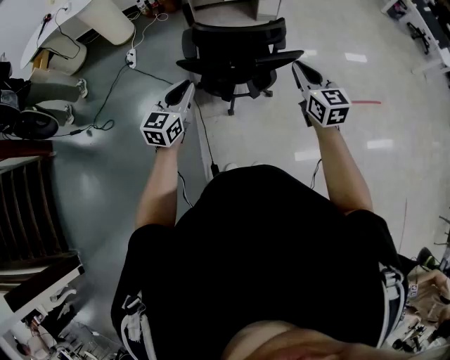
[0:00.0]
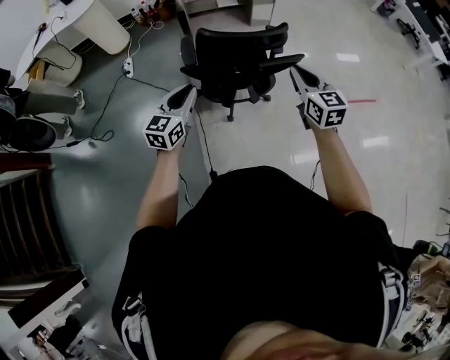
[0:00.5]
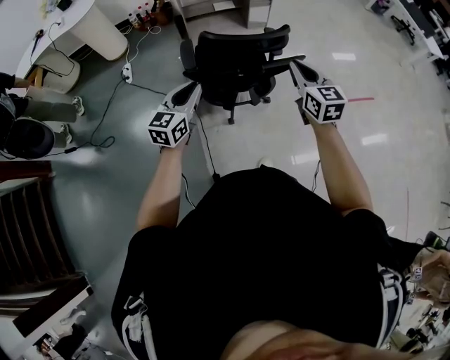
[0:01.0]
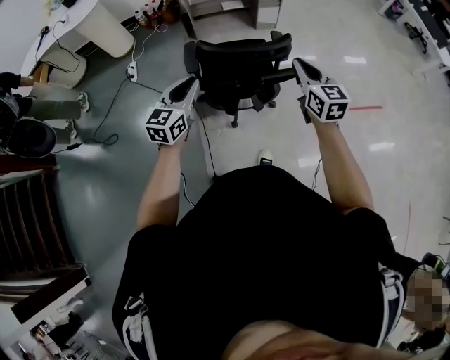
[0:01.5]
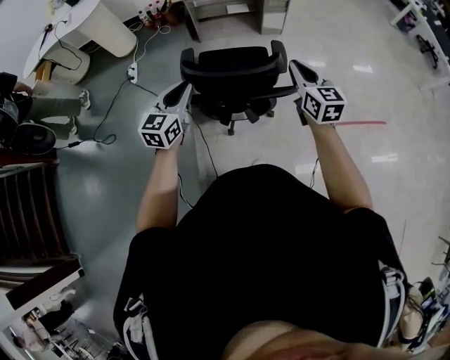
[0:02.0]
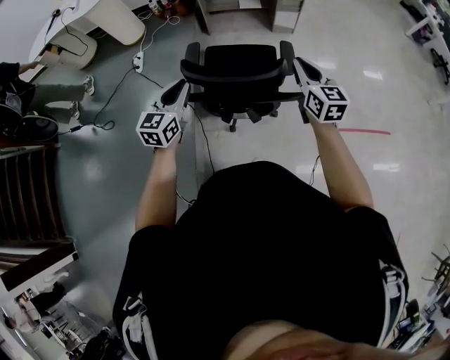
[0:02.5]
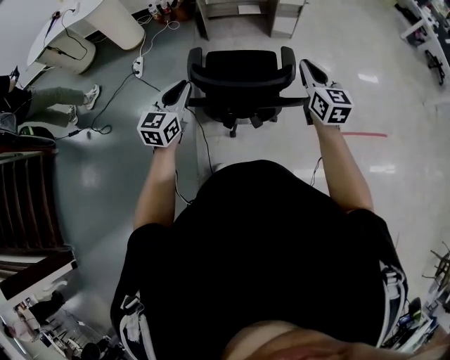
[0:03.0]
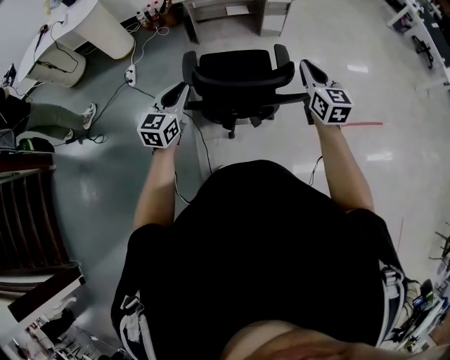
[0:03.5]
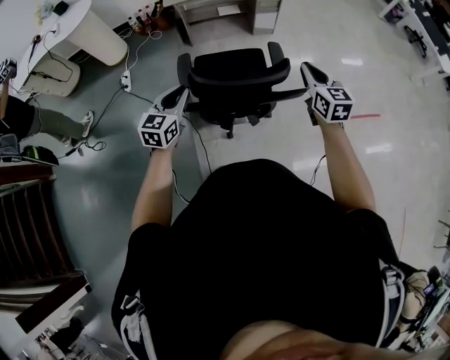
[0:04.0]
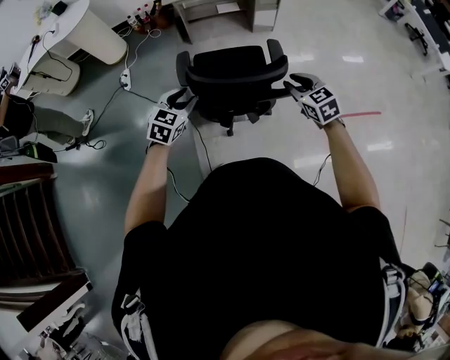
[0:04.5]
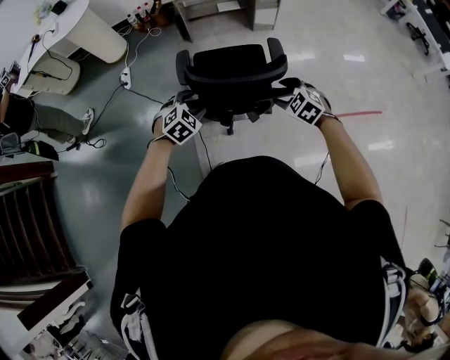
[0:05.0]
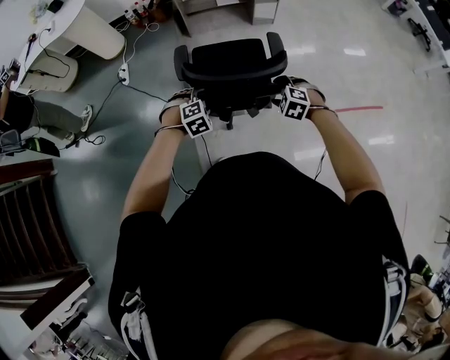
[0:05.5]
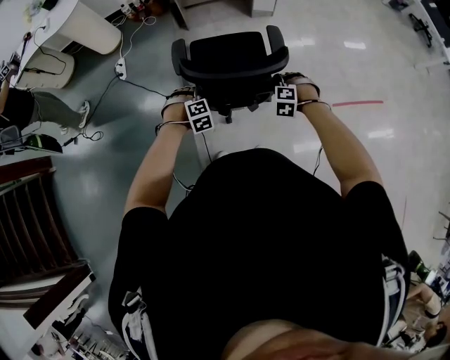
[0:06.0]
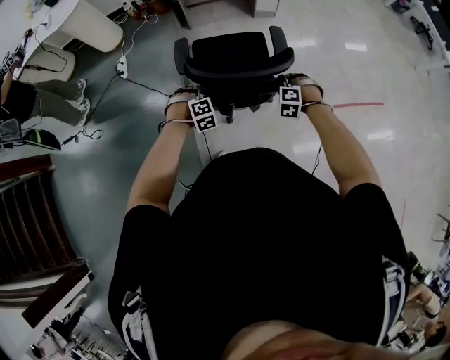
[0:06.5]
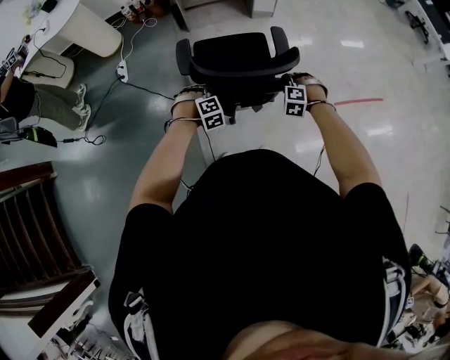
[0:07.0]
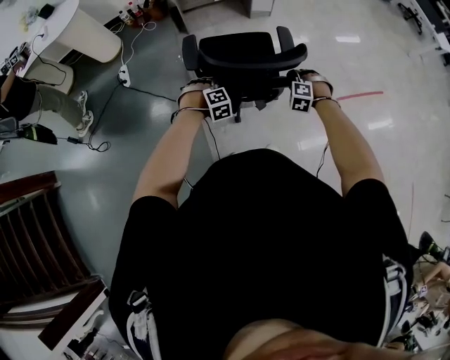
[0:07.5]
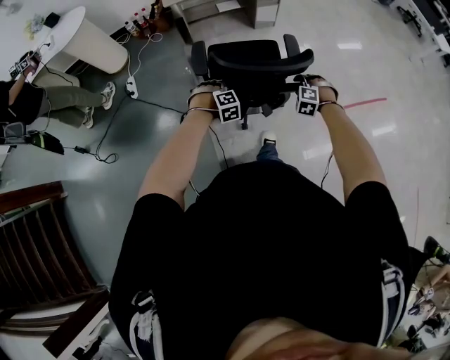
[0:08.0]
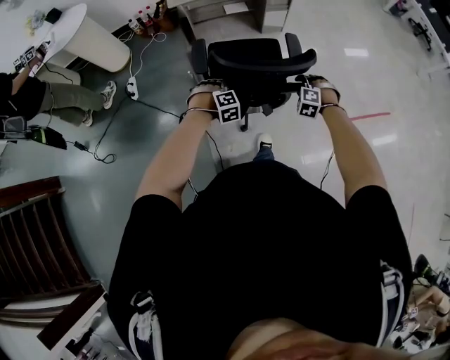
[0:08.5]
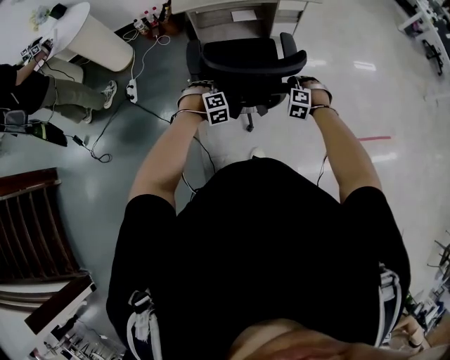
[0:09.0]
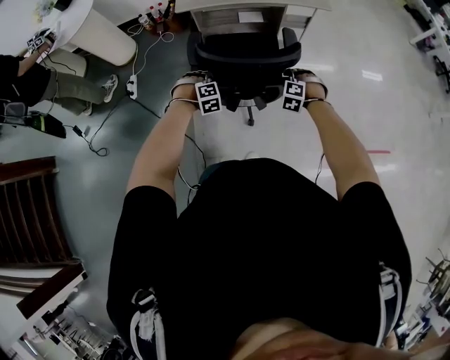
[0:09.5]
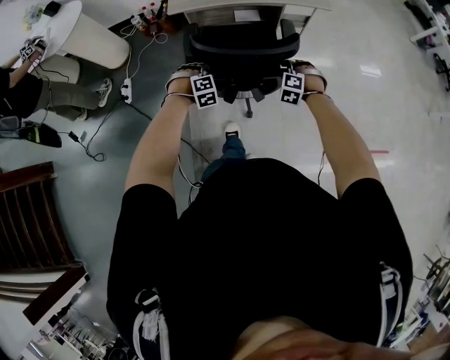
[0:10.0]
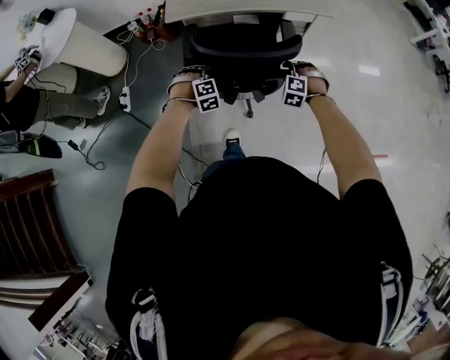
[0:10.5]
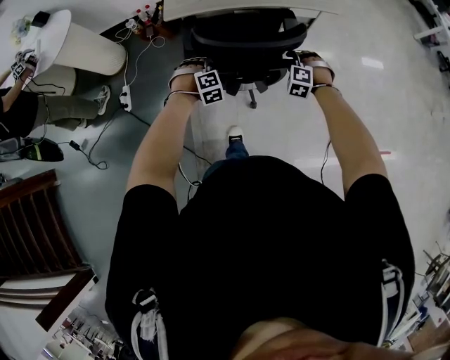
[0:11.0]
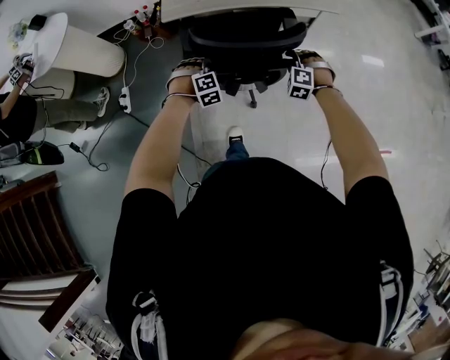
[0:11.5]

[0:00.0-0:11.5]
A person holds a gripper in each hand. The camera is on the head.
0:00.0 to 0:02.0: Both grippers move forward, roughly 15 cm.
0:02.0 to 0:04.0: The left gripper goes some 5 cm to the left.
0:04.0 to 0:06.0: The two grippers go some 25 cm downward. The left gripper tilts its fingers about 50 degrees downward, and opens; the right gripper rotates around the line of its fingers by approximately 70 degrees, counterclockwise from behind, and opens up.
0:06.0 to 0:07.5: The right gripper closes its fingers. Meanwhile the left gripper shifts by roughly 5 cm, and closes its fingers.
0:07.5 to 0:09.5: The two grippers go approximately 35 cm forward.
0:09.5 to 0:11.5: Both grippers move forward, approximately 20 cm.

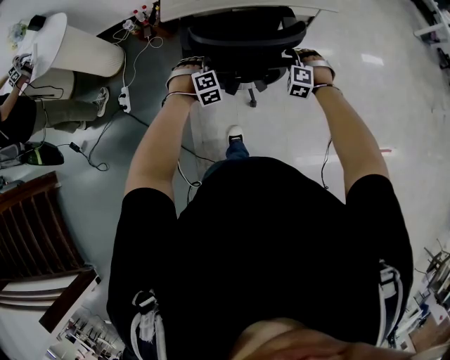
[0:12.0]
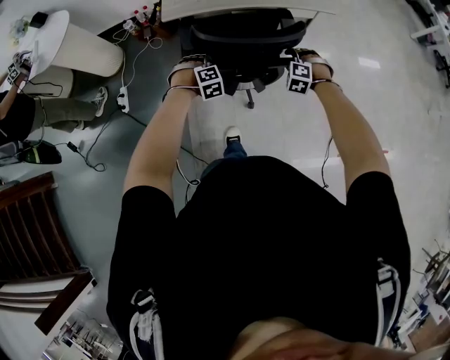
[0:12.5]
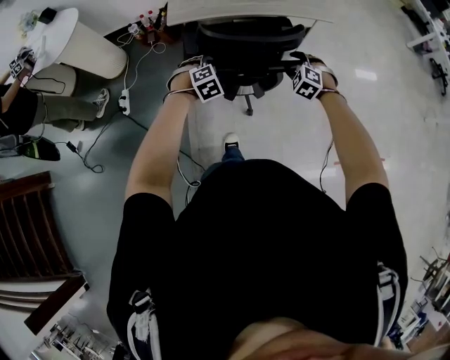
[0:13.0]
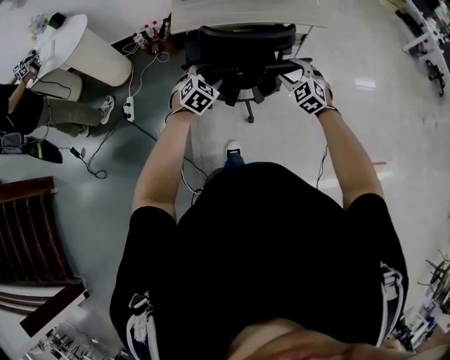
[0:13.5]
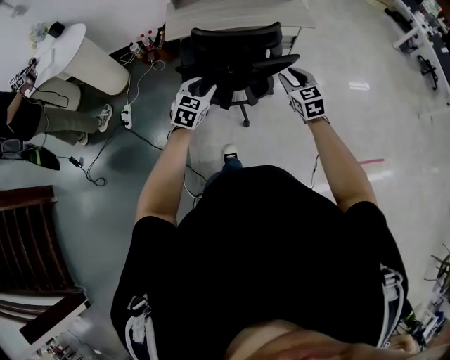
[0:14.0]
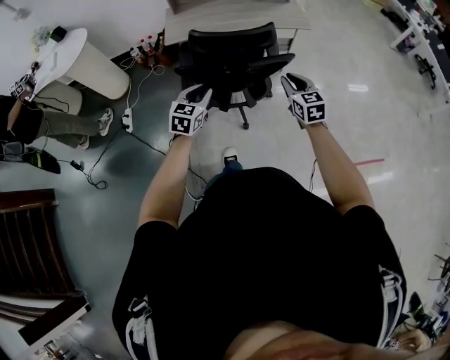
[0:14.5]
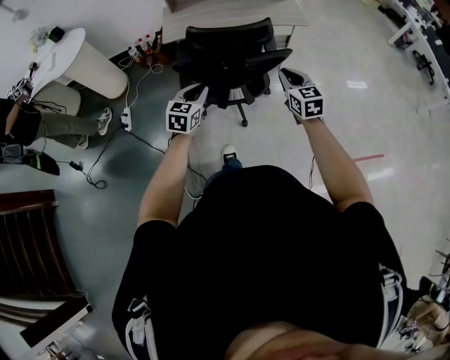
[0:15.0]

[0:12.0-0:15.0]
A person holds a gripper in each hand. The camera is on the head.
0:12.0 to 0:13.5: The two grippers go about 15 cm upward and backward. The left gripper changes its angle by about 40 degrees, and opens. The right gripper rotates roughly 40 degrees, and opens.
0:13.5 to 0:15.0: The right gripper moves backward, upward and to the right, roughly 10 cm, twists roughly 40 degrees clockwise, seen from behind, and closes up. The left gripper is displaced backward by some 10 cm, rotates approximately 30 degrees, and closes.

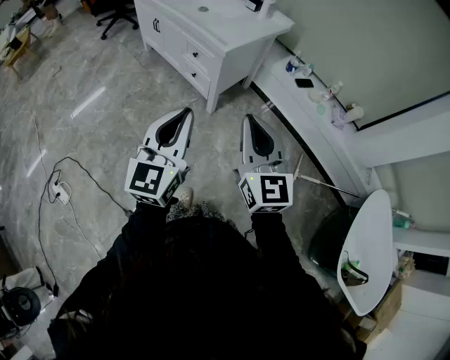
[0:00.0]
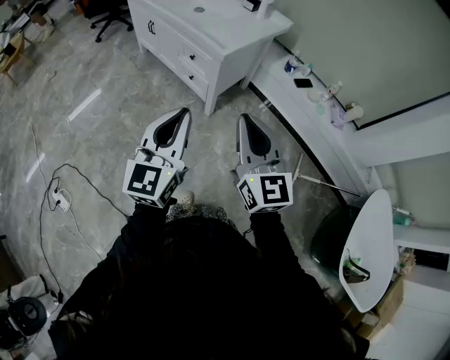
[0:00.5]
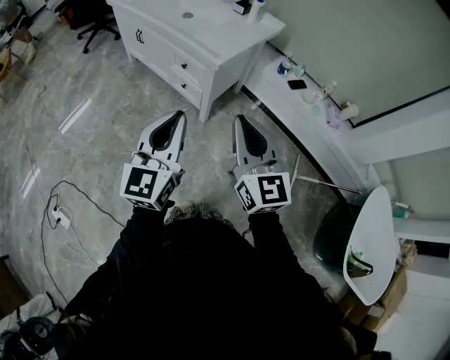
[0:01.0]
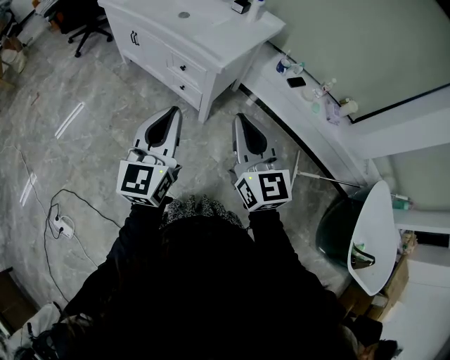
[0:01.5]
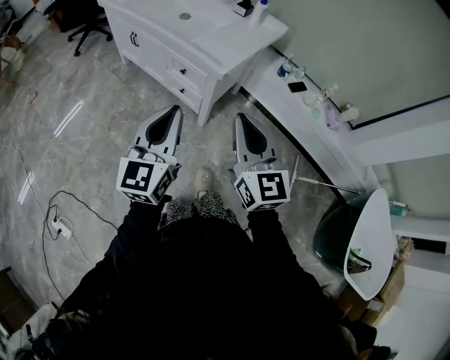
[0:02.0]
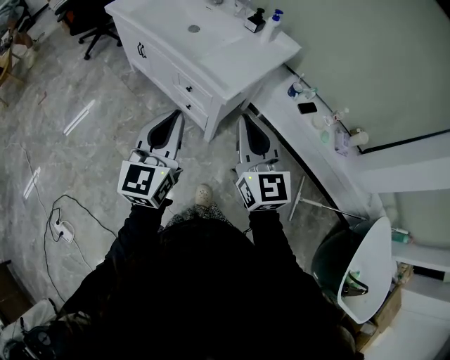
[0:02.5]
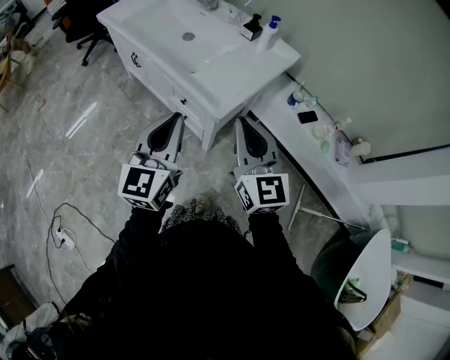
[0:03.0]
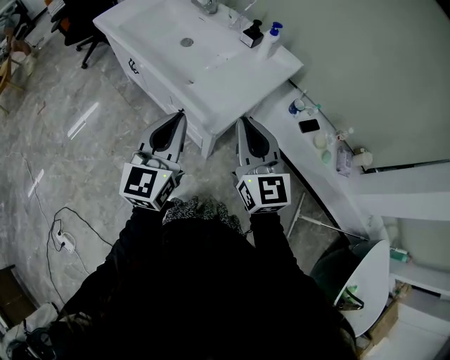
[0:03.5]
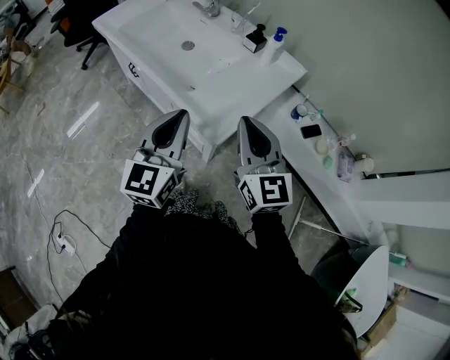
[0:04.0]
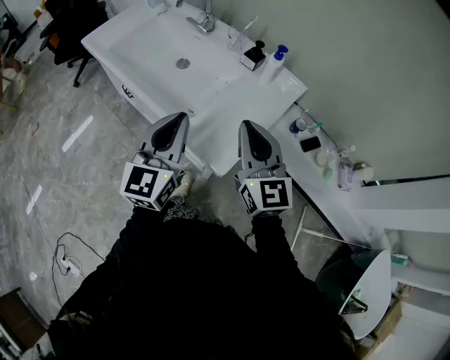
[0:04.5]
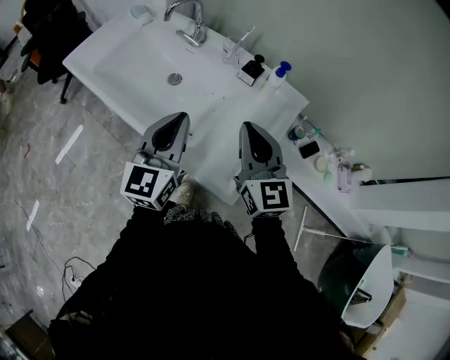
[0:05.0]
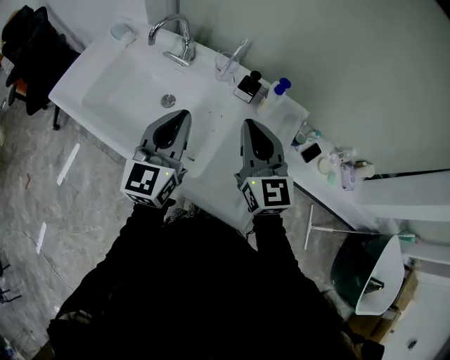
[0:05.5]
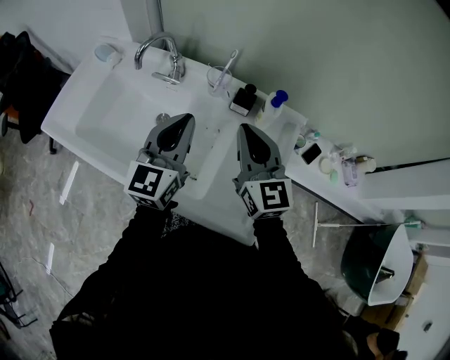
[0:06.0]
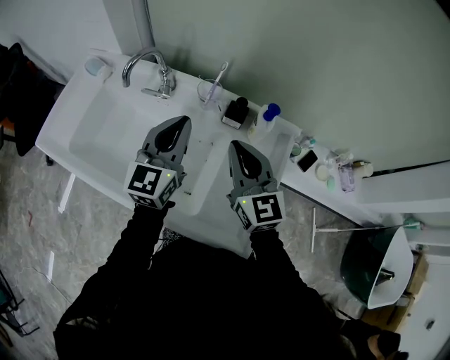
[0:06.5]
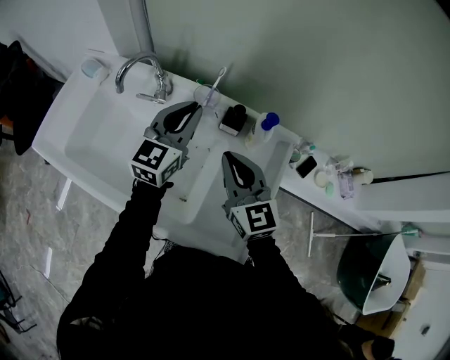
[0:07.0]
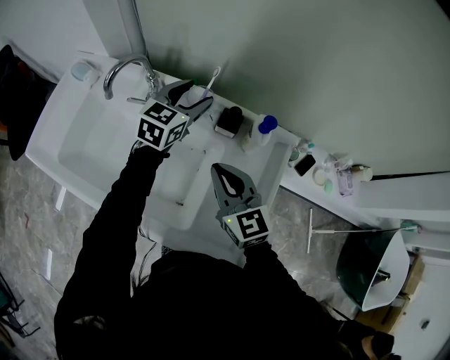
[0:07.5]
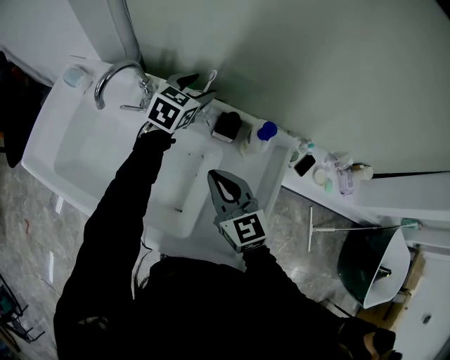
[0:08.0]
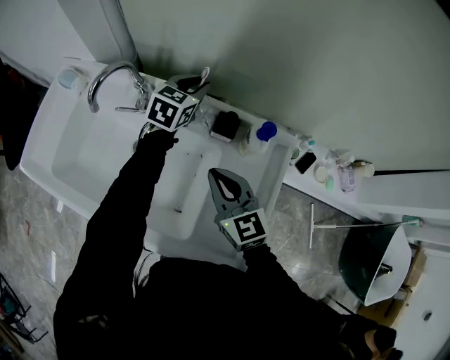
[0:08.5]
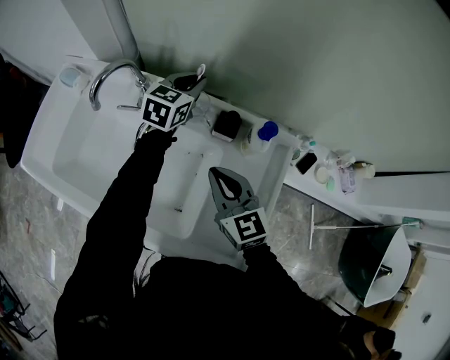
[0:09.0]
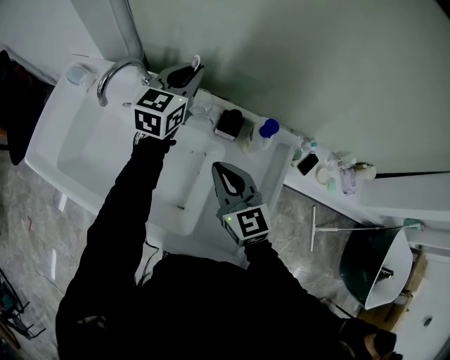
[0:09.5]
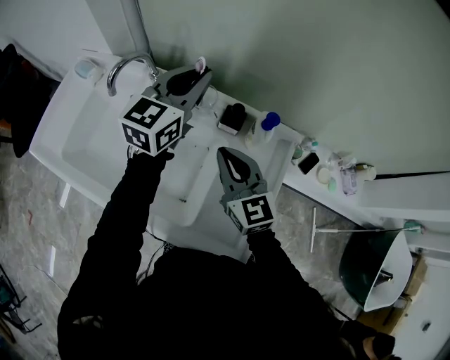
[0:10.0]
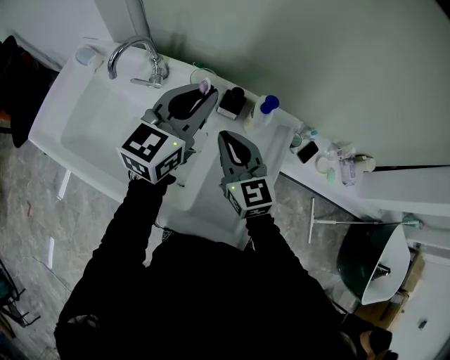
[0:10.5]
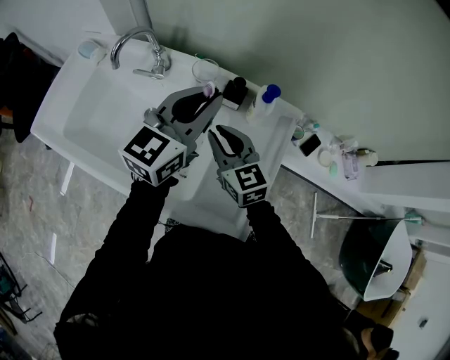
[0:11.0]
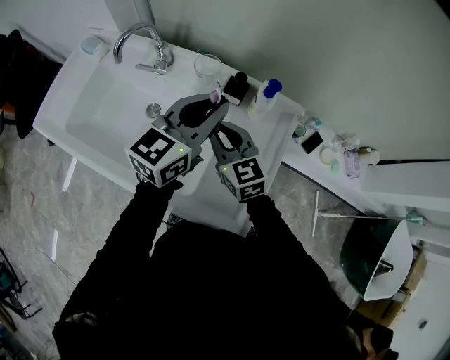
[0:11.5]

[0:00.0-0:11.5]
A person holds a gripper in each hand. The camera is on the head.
0:00.0 to 0:02.0: Both grippers move forward and to the left, about 20 cm.
0:02.0 to 0:04.0: The grippers both shift forward by about 25 cm.
0:04.0 to 0:06.0: The two grippers go approximately 30 cm forward. The left gripper swivels about 20 degrees.
0:06.0 to 0:07.5: The left gripper goes about 20 cm forward, swivels some 20 degrees, and opens up. The right gripper is displaced downward by some 10 cm.
0:07.5 to 0:09.5: The left gripper changes place by roughly 5 cm, and closes.
0:09.5 to 0:11.5: The left gripper moves backward, some 20 cm.

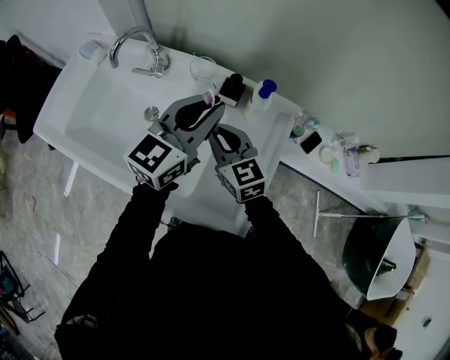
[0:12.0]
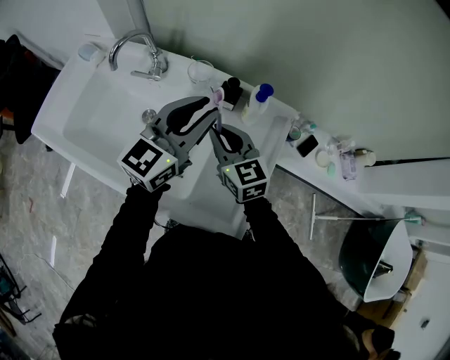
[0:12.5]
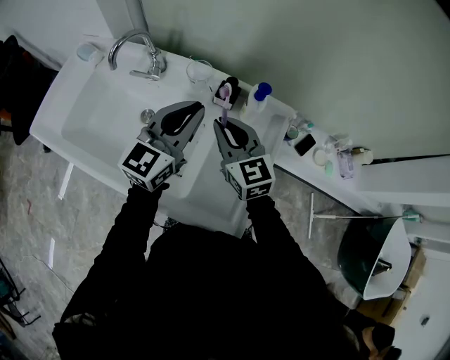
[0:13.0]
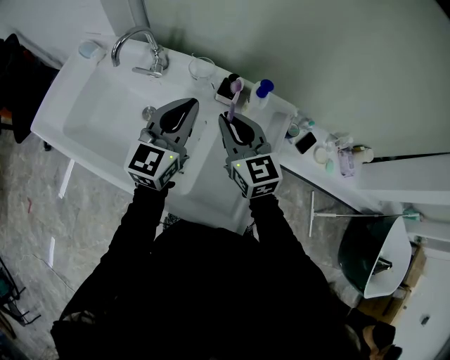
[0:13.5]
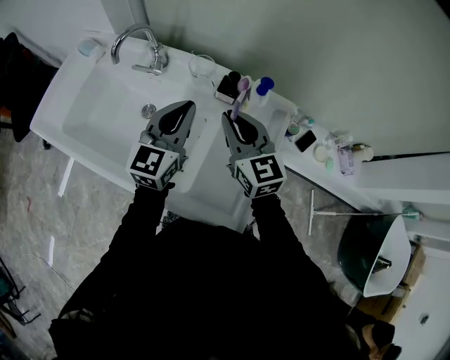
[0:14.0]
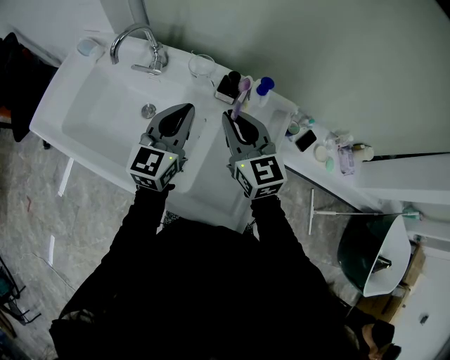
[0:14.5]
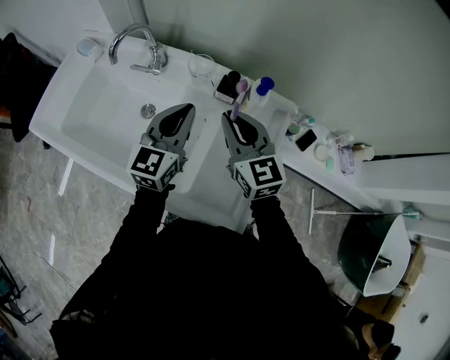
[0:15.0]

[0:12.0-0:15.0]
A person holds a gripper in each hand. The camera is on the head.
0:12.0 to 0:13.5: The right gripper heads upward, covering roughly 5 cm; the left gripper travels to the left by some 5 cm.
0:13.5 to 0:15.0: The grippers move only a little.
